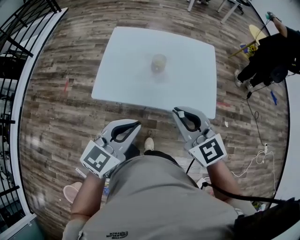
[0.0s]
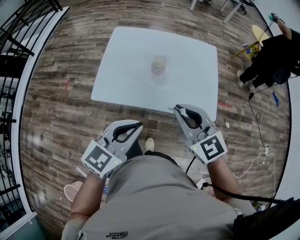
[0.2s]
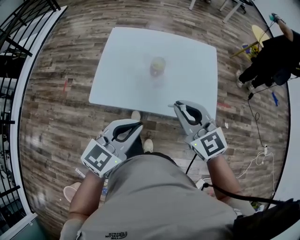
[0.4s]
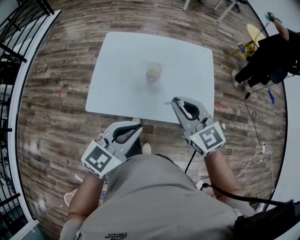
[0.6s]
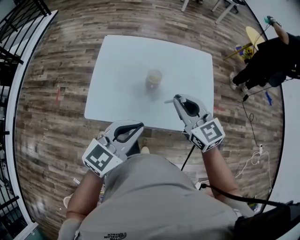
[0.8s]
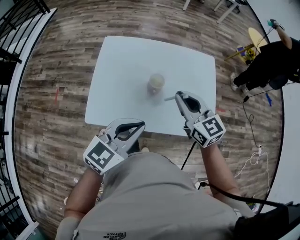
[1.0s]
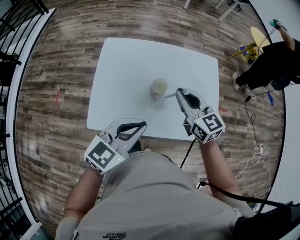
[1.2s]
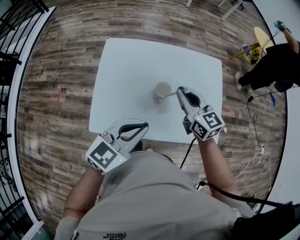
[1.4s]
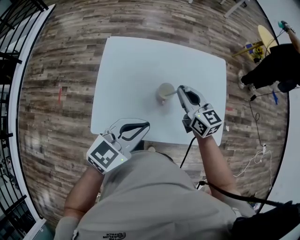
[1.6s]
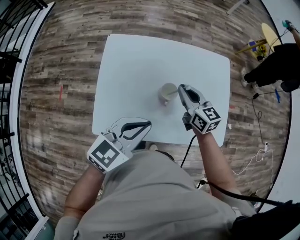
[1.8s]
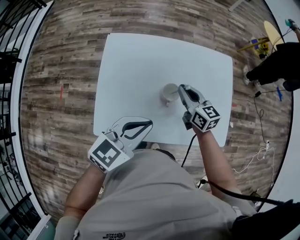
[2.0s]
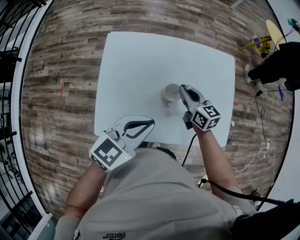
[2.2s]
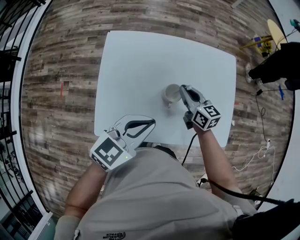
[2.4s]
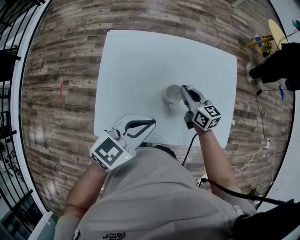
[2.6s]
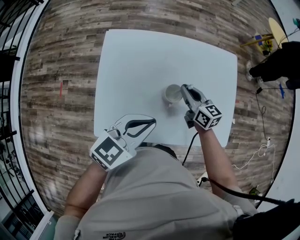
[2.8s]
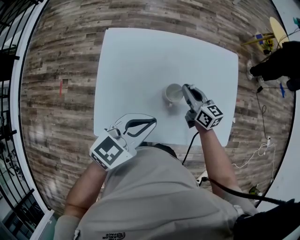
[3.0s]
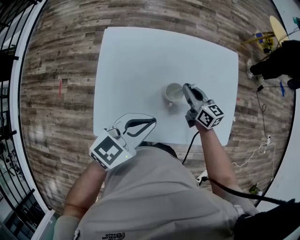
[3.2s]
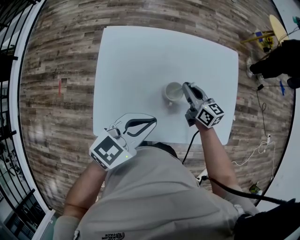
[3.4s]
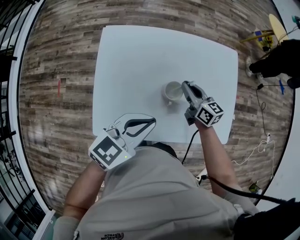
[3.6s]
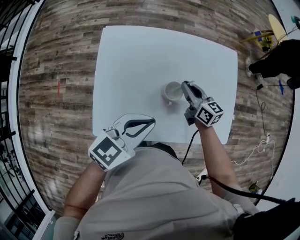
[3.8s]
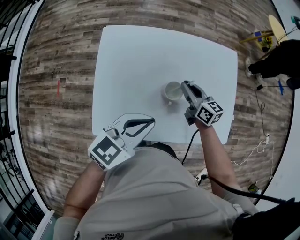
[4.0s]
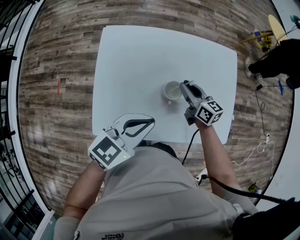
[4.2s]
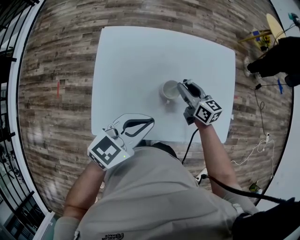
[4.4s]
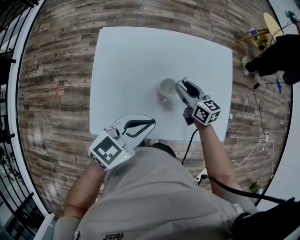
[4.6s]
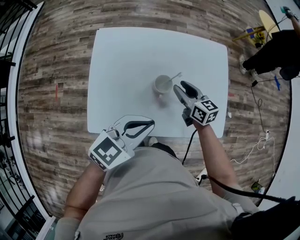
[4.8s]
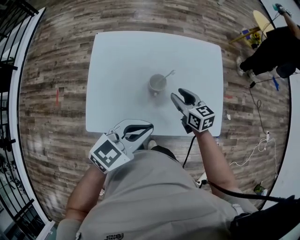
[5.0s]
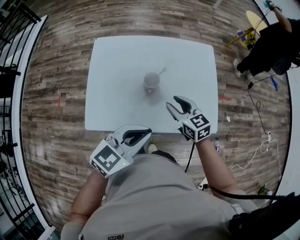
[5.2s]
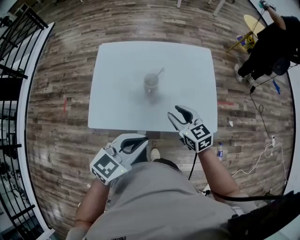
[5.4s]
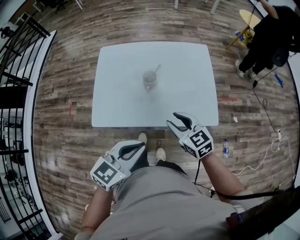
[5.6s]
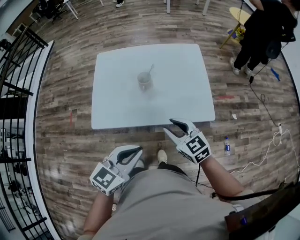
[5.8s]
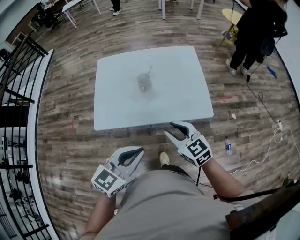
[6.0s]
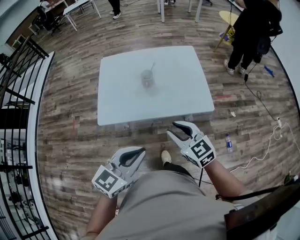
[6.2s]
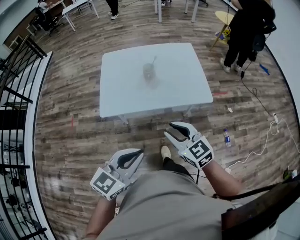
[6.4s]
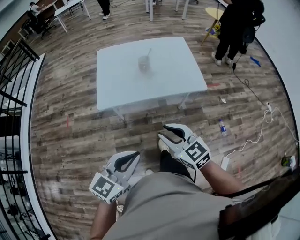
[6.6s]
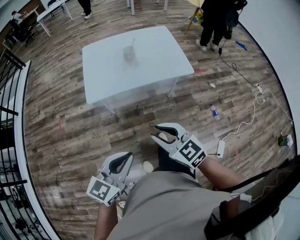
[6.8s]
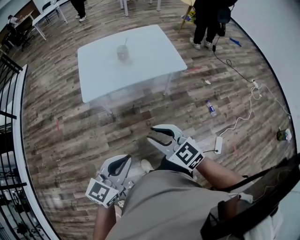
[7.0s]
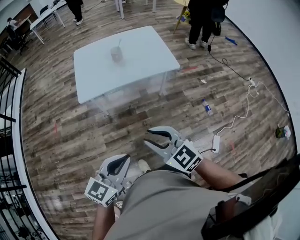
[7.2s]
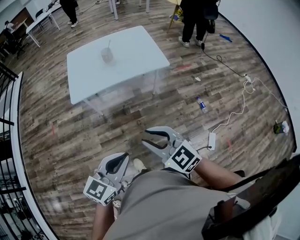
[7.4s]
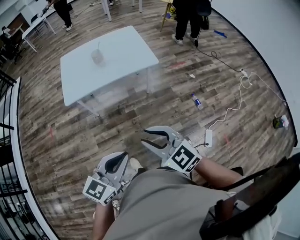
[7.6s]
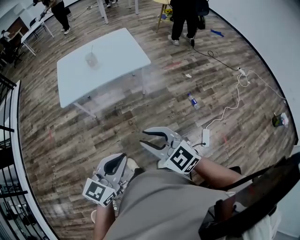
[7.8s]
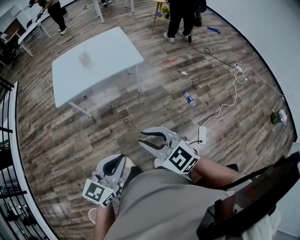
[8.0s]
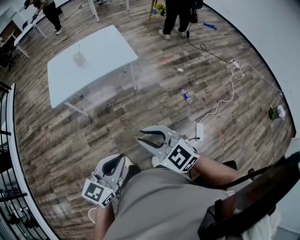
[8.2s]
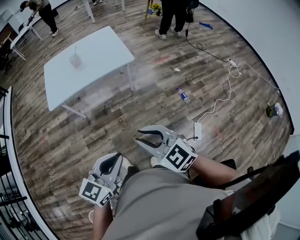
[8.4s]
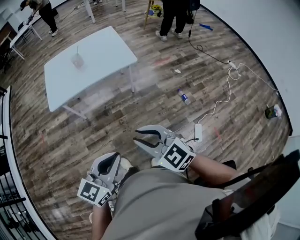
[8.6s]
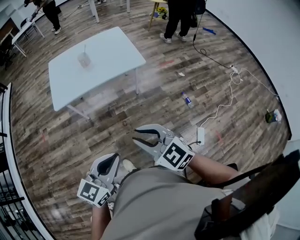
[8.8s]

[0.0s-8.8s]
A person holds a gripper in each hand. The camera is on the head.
0.0s to 1.4s: Both grippers move forward, about 25 cm. The right gripper swivels approximately 20 degrees.
1.4s to 3.0s: The left gripper shifts approximately 5 cm forward. Meanwhile the right gripper travels downward and forward by about 15 cm.
3.0s to 4.4s: The right gripper opens.
4.4s to 5.8s: The right gripper goes roughly 30 cm backward, and turns by about 30 degrees. The left gripper is displaced backward and to the right by about 25 cm.
5.8s to 7.4s: Both grippers travel together backward, roughly 40 cm.
7.4s to 8.8s: The two grippers go about 5 cm to the right.

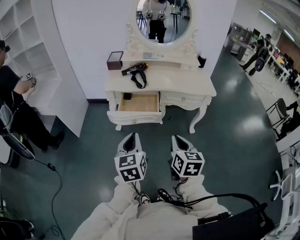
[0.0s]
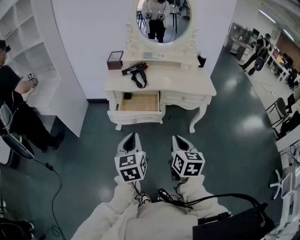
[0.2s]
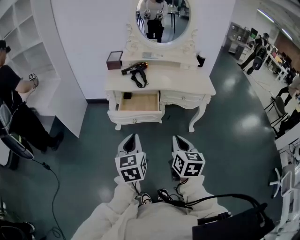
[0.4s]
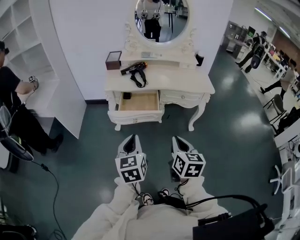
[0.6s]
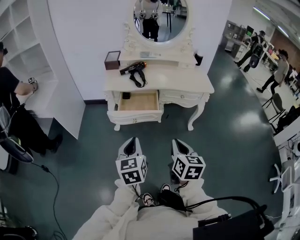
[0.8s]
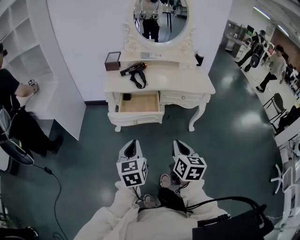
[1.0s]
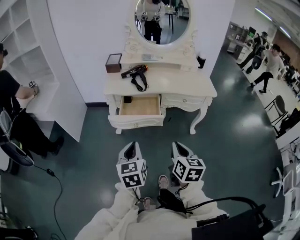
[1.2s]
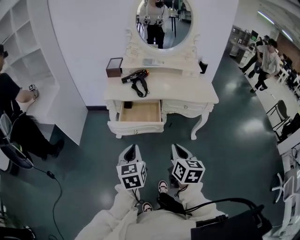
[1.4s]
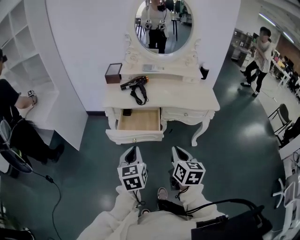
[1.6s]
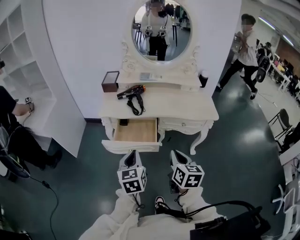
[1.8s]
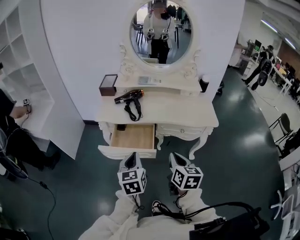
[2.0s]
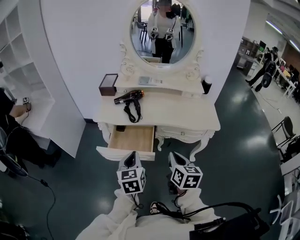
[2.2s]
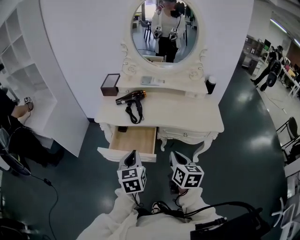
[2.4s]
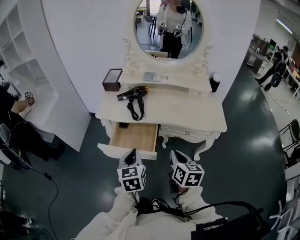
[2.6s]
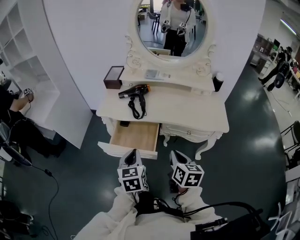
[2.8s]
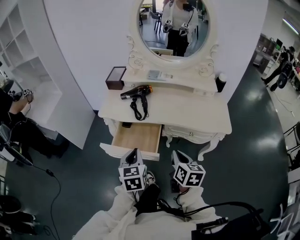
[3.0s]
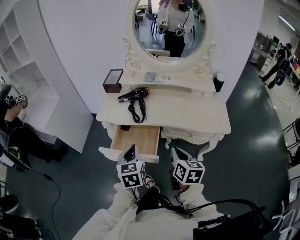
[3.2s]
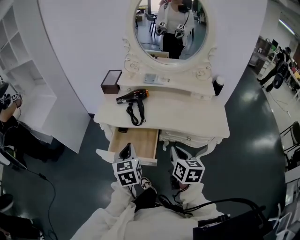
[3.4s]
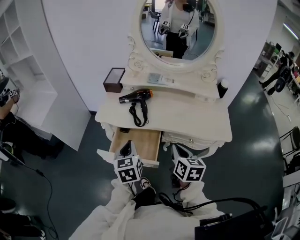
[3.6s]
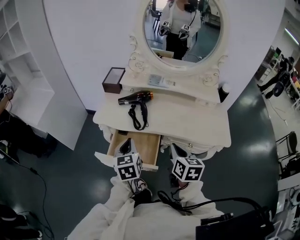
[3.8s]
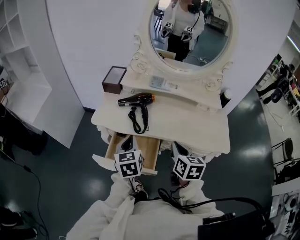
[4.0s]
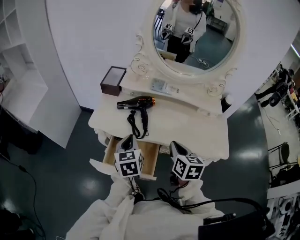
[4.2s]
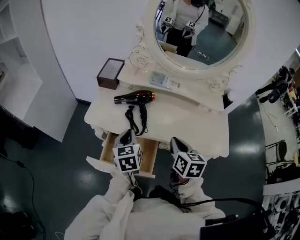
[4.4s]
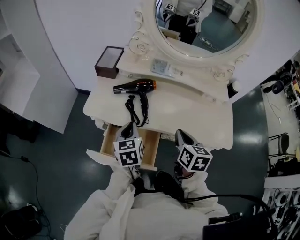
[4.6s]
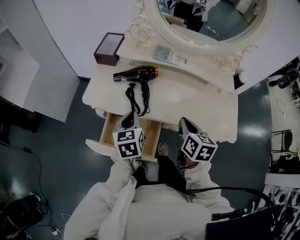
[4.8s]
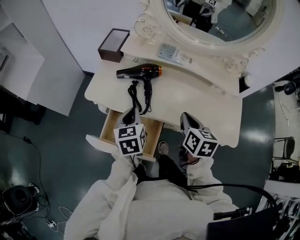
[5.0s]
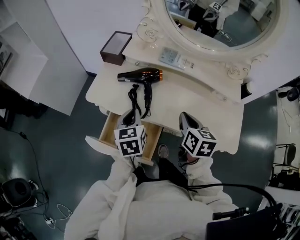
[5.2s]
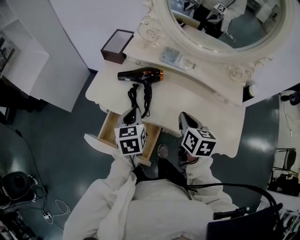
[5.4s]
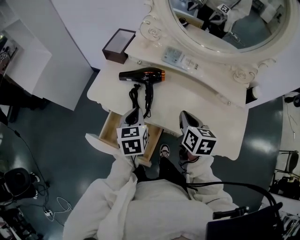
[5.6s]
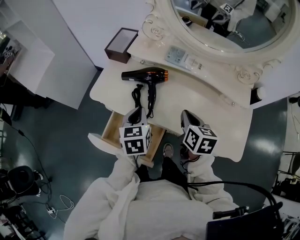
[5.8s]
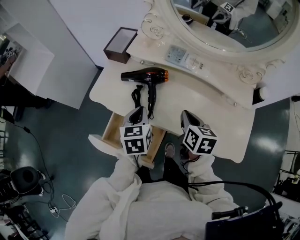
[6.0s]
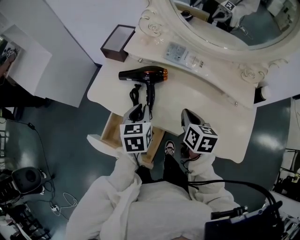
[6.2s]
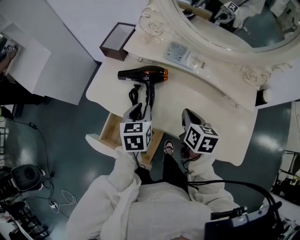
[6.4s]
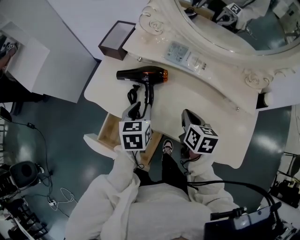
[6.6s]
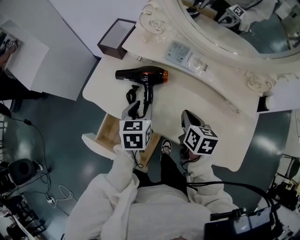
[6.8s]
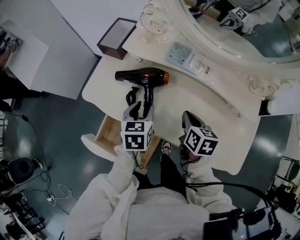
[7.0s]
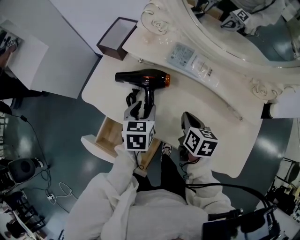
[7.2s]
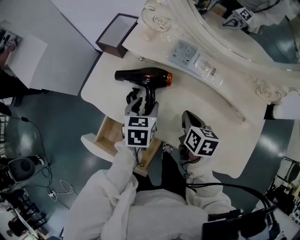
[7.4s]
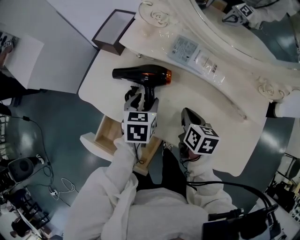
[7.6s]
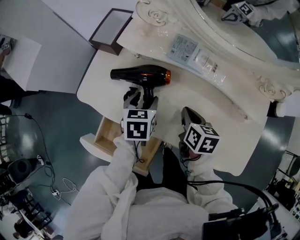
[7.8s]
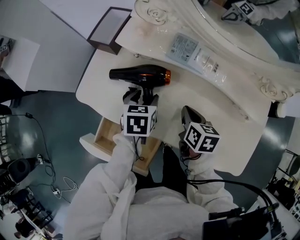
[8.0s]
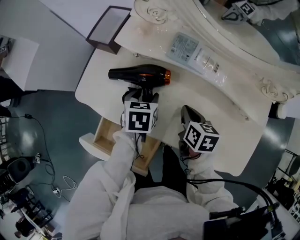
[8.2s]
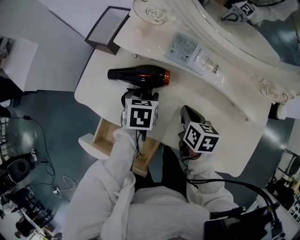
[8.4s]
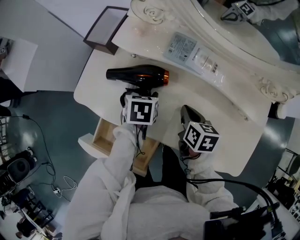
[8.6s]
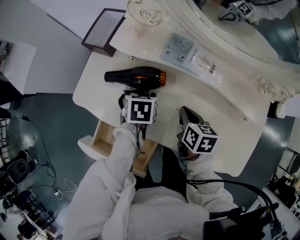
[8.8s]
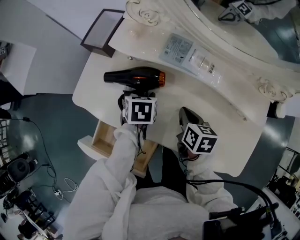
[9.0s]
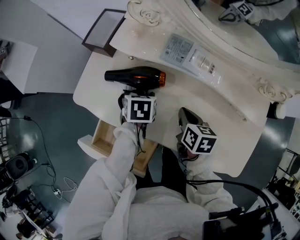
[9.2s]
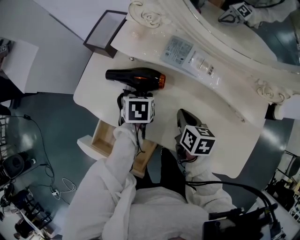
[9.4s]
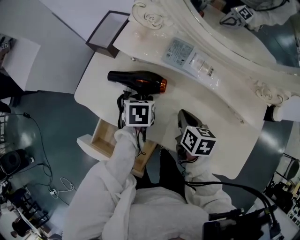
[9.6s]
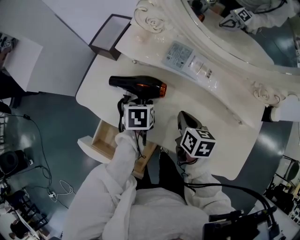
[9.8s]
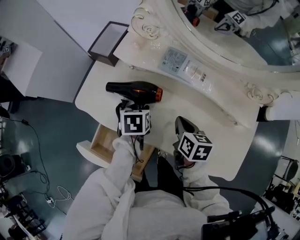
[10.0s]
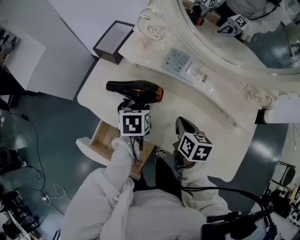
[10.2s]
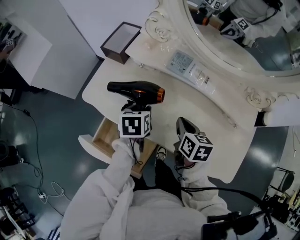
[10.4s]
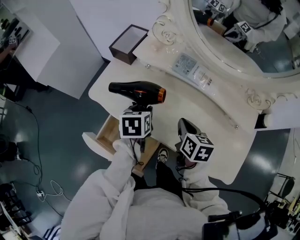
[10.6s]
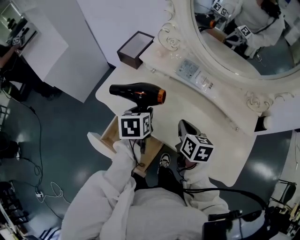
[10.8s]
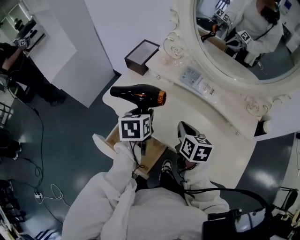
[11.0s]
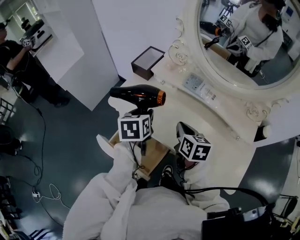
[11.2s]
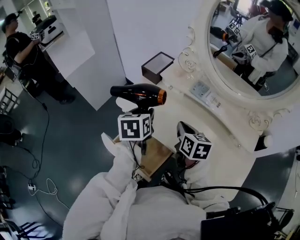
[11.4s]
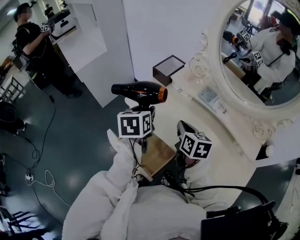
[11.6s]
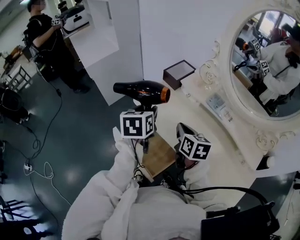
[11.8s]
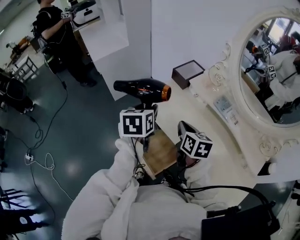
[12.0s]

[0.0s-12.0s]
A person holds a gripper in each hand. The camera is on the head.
0.0s to 1.6s: The two grippers go about 5 cm forward.
1.6s to 3.0s: The grippers both shift forward and to the right by about 15 cm.
3.0s to 4.4s: The two grippers go approximately 20 cm forward.
4.4s to 6.0s: The left gripper ends up approximately 5 cm from where it was. Meanwhile the right gripper moves forward, about 10 cm.
6.0s to 7.6s: The left gripper travels forward and downward by roughly 10 cm, and opens up. The right gripper heads downward and forward, covering some 10 cm.
7.6s to 9.0s: The left gripper moves roughly 5 cm.
9.0s to 10.4s: The right gripper shifts approximately 5 cm upward, while the left gripper is displaced upward and backward by some 10 cm.
10.4s to 12.0s: The right gripper moves about 20 cm, and turns by roughly 30 degrees, while the left gripper ends up about 25 cm from where it was, and turns by approximately 30 degrees.

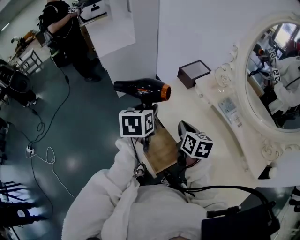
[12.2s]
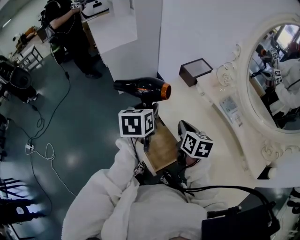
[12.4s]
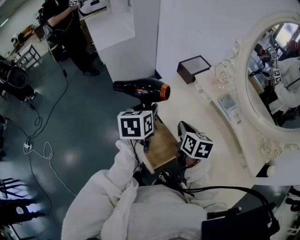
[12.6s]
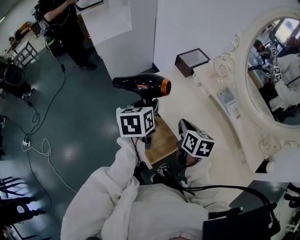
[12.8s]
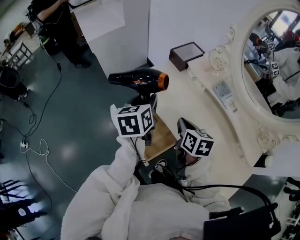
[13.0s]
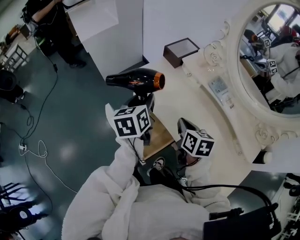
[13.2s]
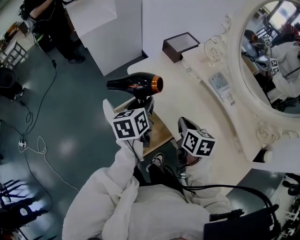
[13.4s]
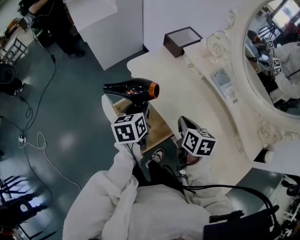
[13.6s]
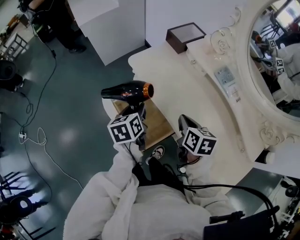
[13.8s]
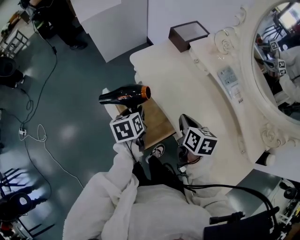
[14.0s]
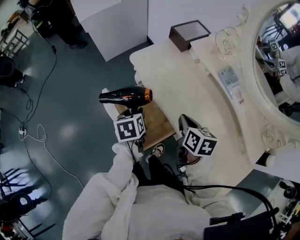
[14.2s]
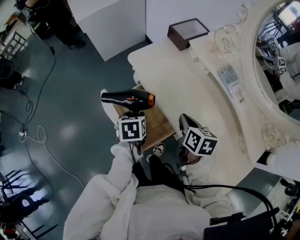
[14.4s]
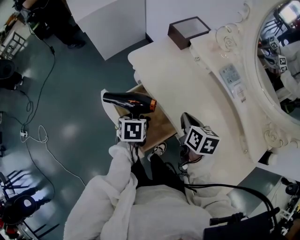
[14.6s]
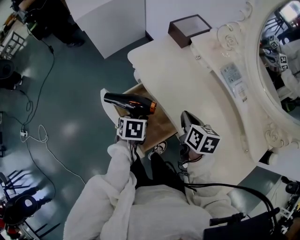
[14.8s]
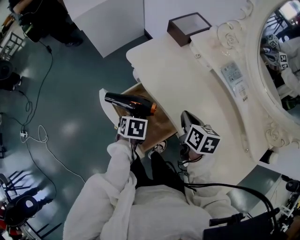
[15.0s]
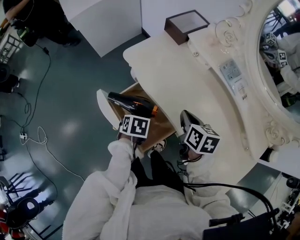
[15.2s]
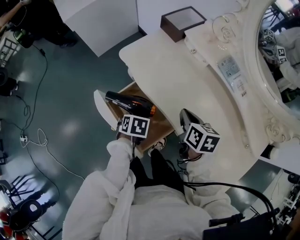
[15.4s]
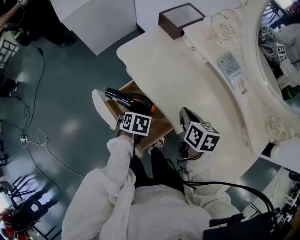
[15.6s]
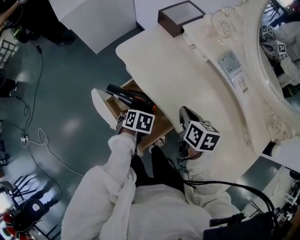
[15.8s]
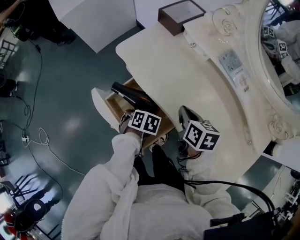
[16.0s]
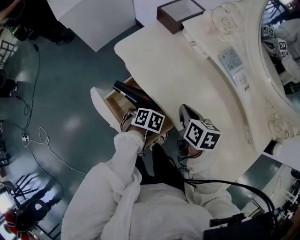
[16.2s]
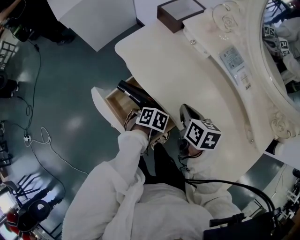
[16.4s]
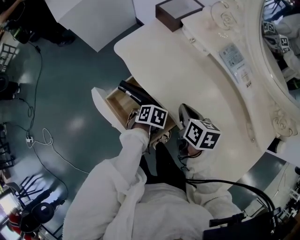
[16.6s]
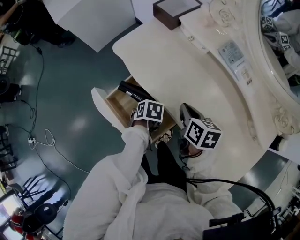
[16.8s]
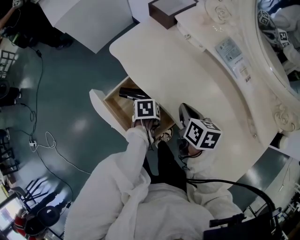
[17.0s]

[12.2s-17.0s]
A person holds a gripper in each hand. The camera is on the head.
12.2s to 13.8s: The left gripper shifts some 15 cm downward and backward. Meanwhile the right gripper shifts approximately 15 cm downward, to the right and backward.
13.8s to 15.4s: The left gripper heads downward, covering approximately 15 cm, and tips its fingers downward by about 40 degrees.
15.4s to 17.0s: The left gripper ends up about 10 cm from where it was, and changes its angle by about 20 degrees.
